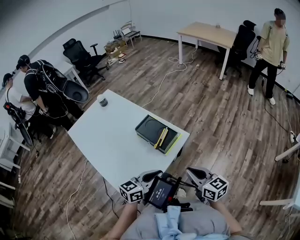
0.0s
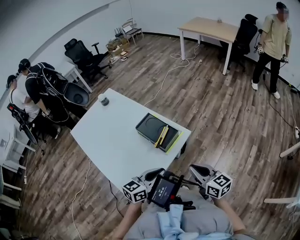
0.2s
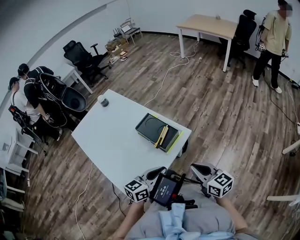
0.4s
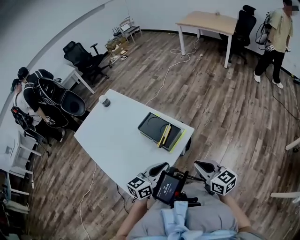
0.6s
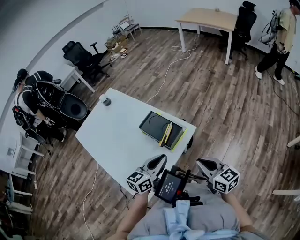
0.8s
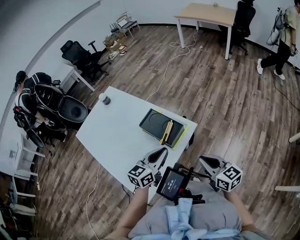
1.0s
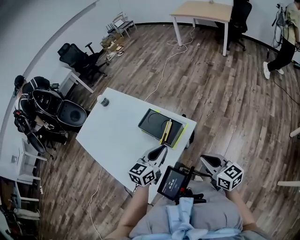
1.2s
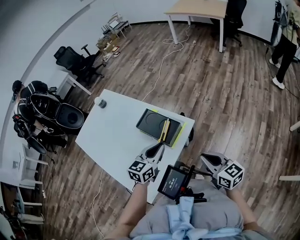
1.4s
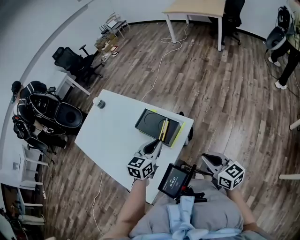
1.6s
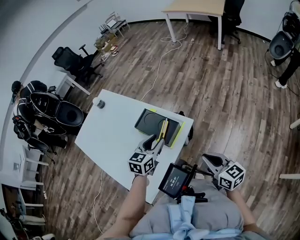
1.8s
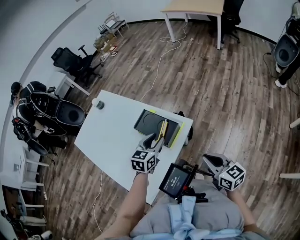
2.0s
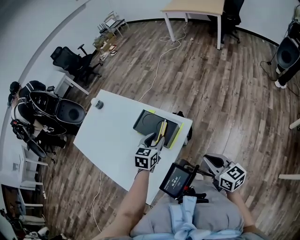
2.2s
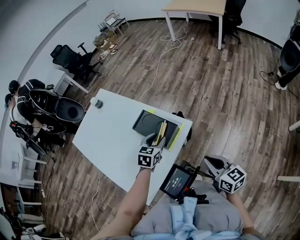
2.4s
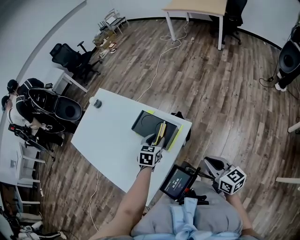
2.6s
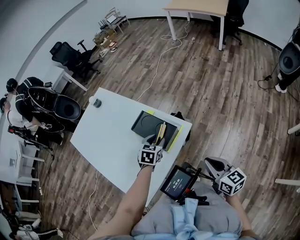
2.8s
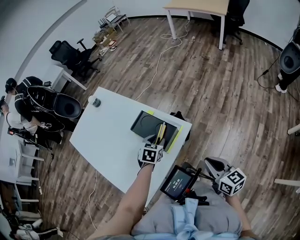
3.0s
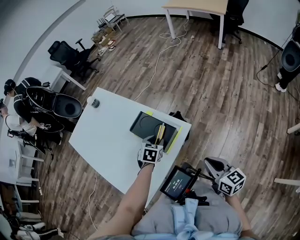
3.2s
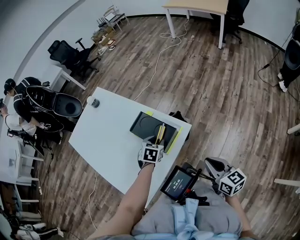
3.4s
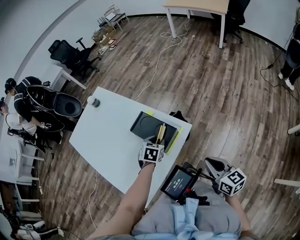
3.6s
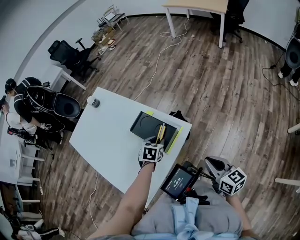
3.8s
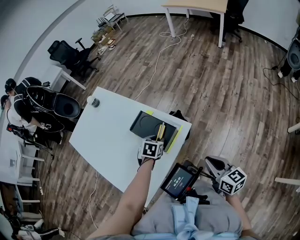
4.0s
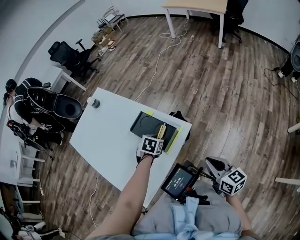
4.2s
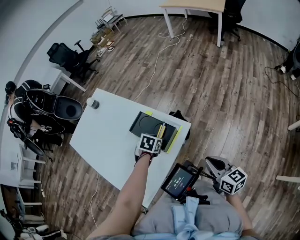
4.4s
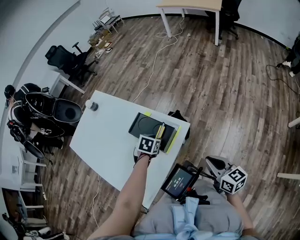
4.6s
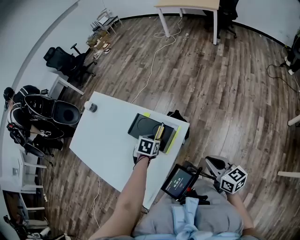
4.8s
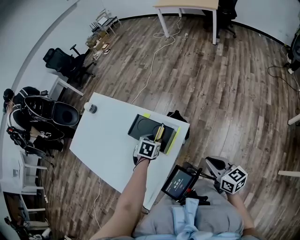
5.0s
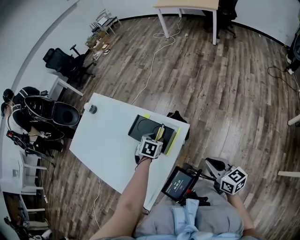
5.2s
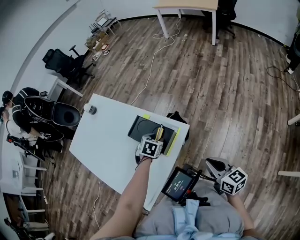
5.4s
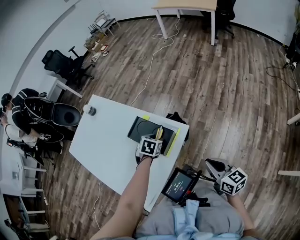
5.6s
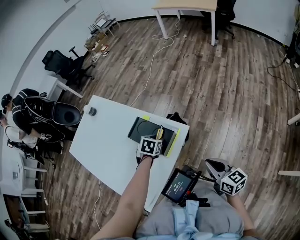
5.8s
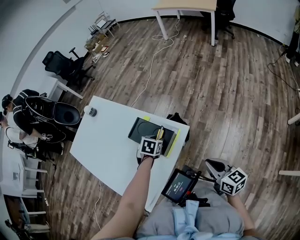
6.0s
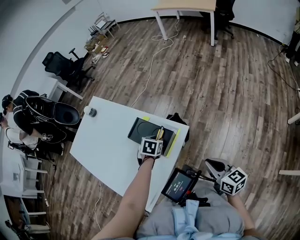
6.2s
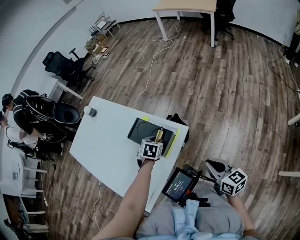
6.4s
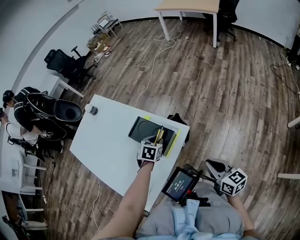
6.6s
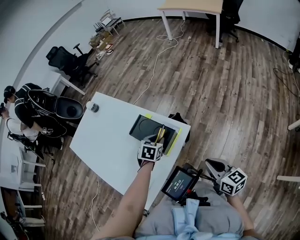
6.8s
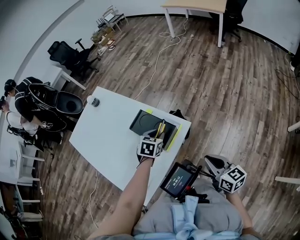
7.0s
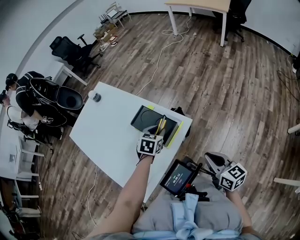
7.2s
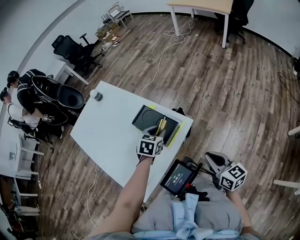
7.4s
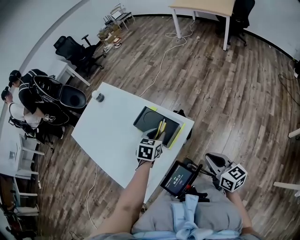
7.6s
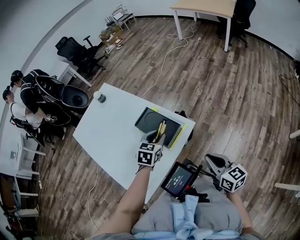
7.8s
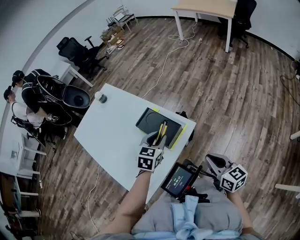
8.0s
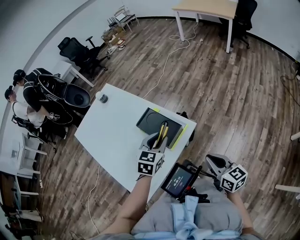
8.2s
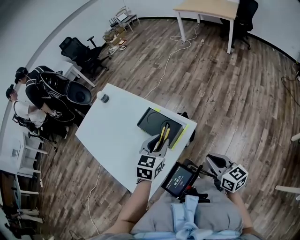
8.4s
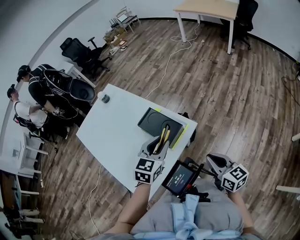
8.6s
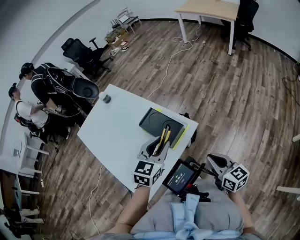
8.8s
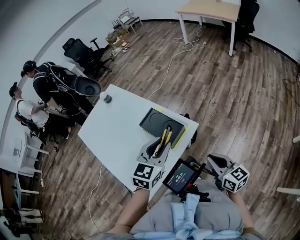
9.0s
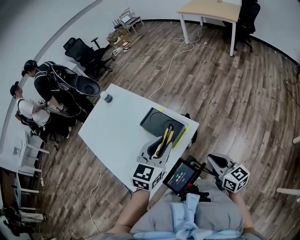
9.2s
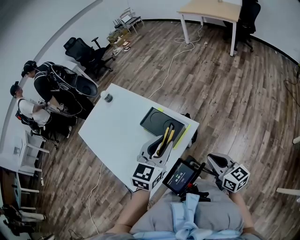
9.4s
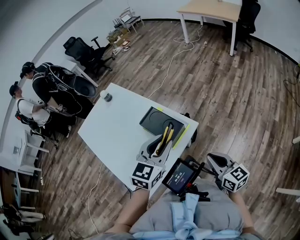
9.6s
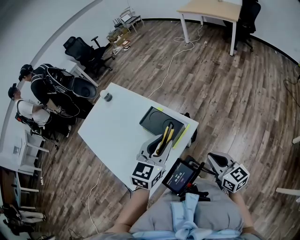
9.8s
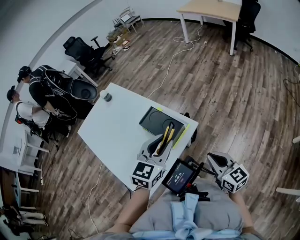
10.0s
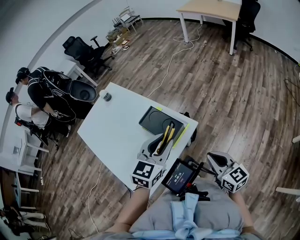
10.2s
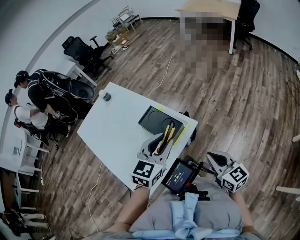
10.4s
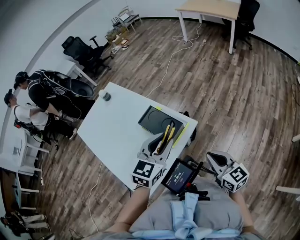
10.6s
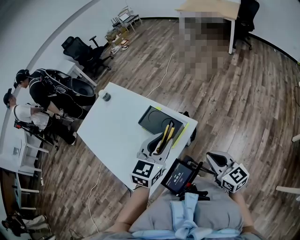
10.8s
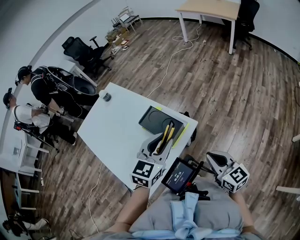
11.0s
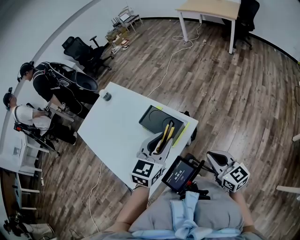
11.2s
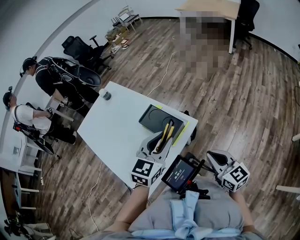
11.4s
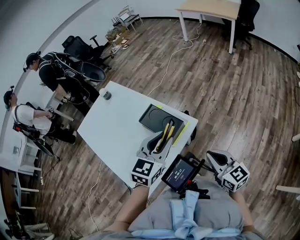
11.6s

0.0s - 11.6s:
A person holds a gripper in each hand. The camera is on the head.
0.0s - 1.4s: The right gripper changes place by roughly 5 cm; the left gripper heads forward, covering some 15 cm, and turns by roughly 20 degrees.
1.4s - 2.8s: The right gripper changes place by about 5 cm. Meanwhile the left gripper is displaced downward and forward by approximately 15 cm, swivels some 30 degrees, and opens.
2.8s - 4.4s: The left gripper rotates approximately 20 degrees.
4.4s - 5.8s: The grippers move only a little.
5.8s - 7.2s: The left gripper shifts by some 5 cm.
7.2s - 8.8s: The left gripper goes some 15 cm upward and backward, and swivels about 20 degrees.
8.8s - 11.6s: The grippers move only a little.

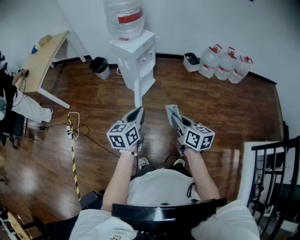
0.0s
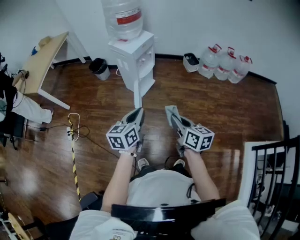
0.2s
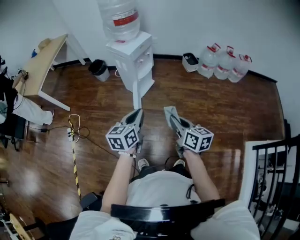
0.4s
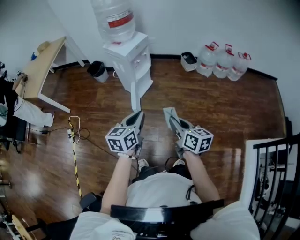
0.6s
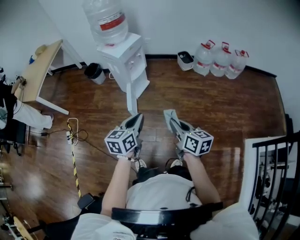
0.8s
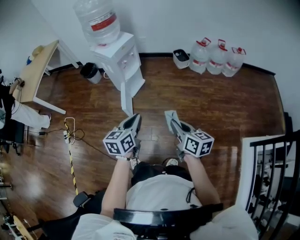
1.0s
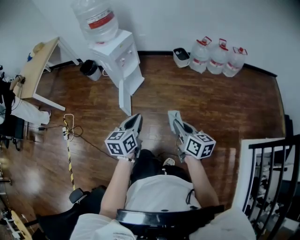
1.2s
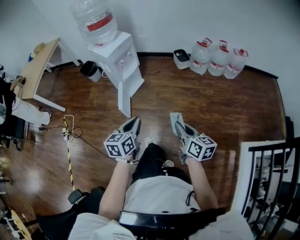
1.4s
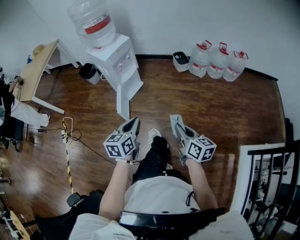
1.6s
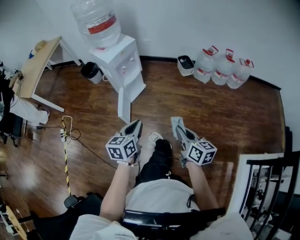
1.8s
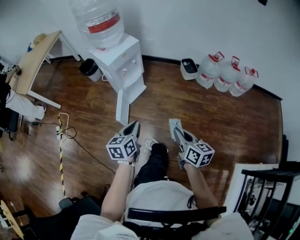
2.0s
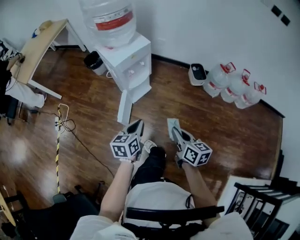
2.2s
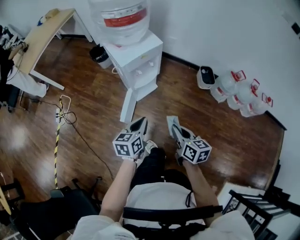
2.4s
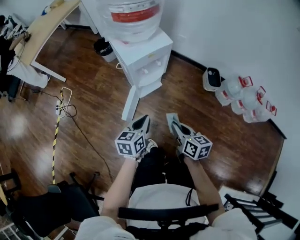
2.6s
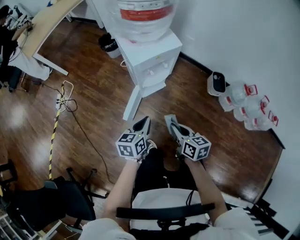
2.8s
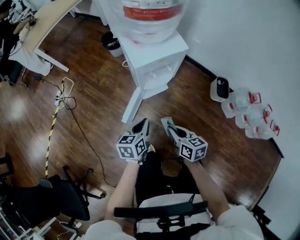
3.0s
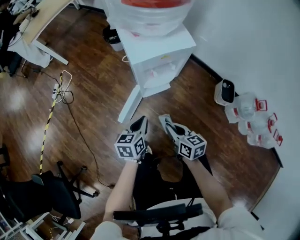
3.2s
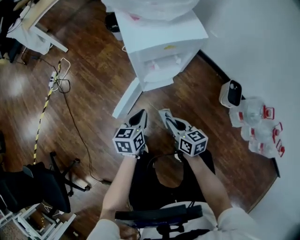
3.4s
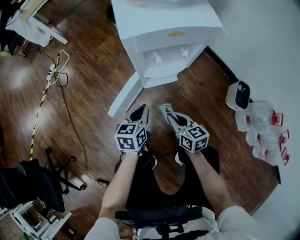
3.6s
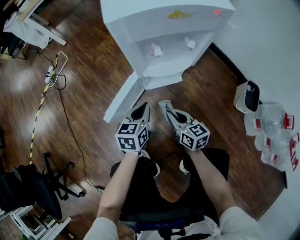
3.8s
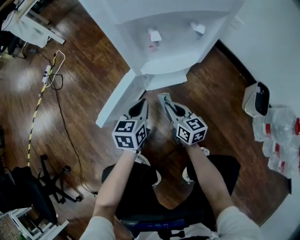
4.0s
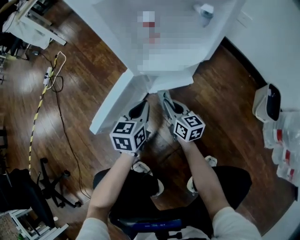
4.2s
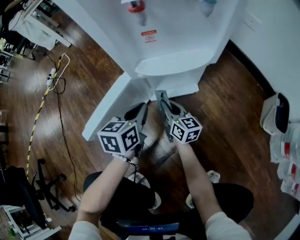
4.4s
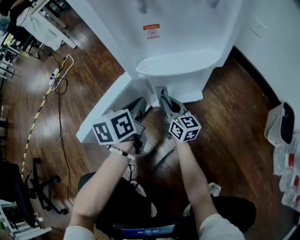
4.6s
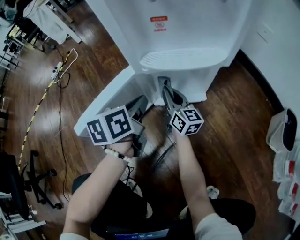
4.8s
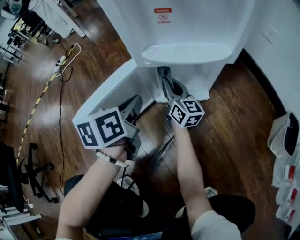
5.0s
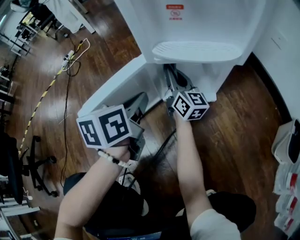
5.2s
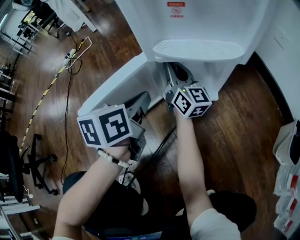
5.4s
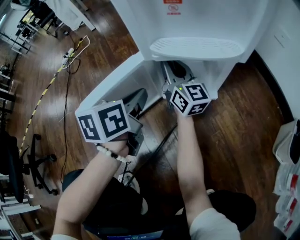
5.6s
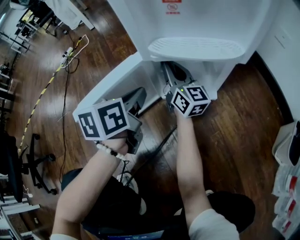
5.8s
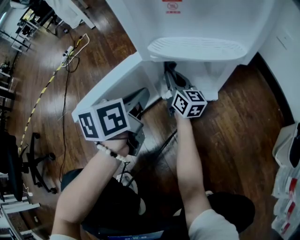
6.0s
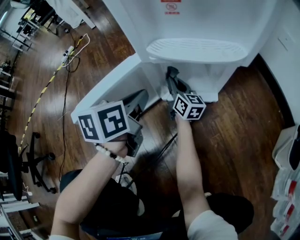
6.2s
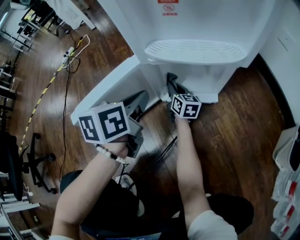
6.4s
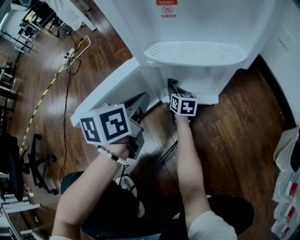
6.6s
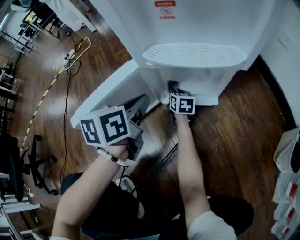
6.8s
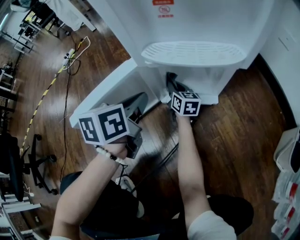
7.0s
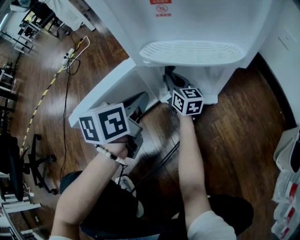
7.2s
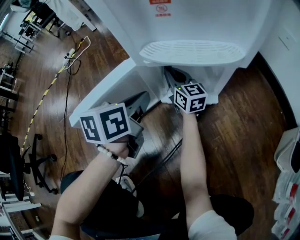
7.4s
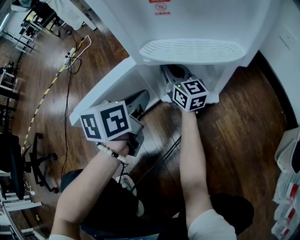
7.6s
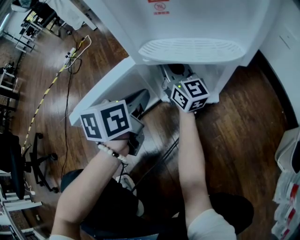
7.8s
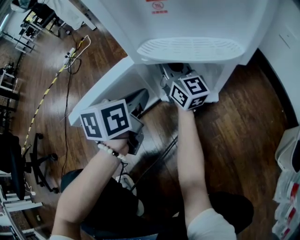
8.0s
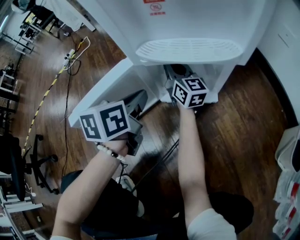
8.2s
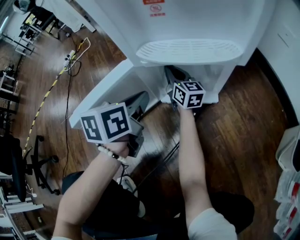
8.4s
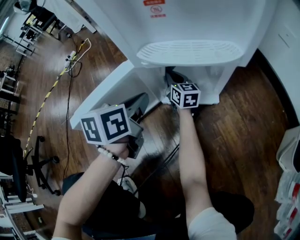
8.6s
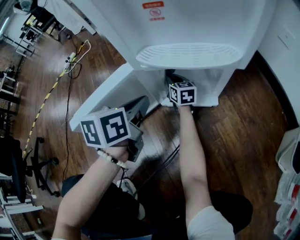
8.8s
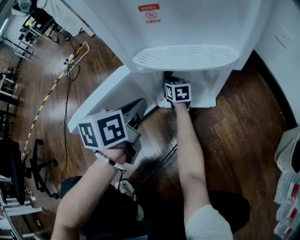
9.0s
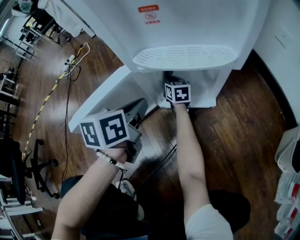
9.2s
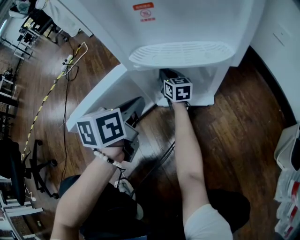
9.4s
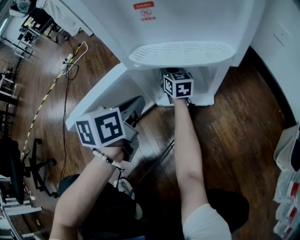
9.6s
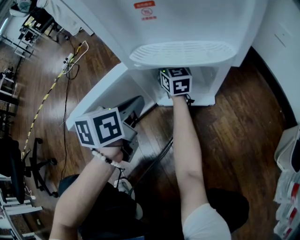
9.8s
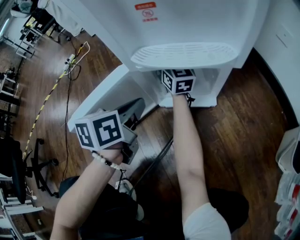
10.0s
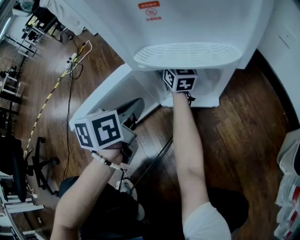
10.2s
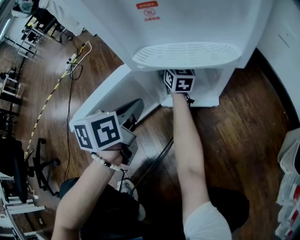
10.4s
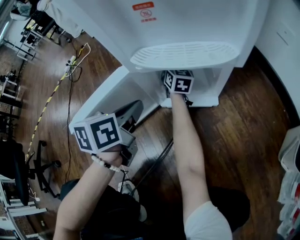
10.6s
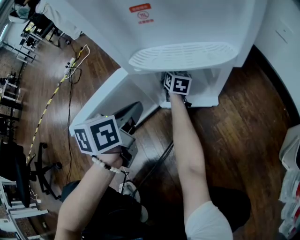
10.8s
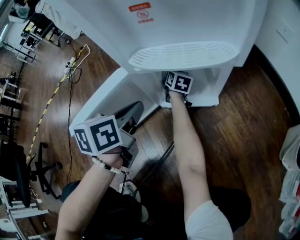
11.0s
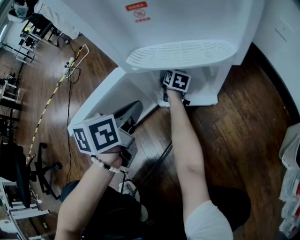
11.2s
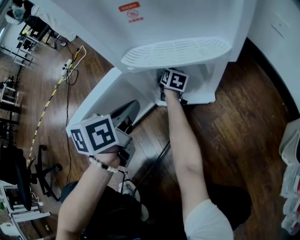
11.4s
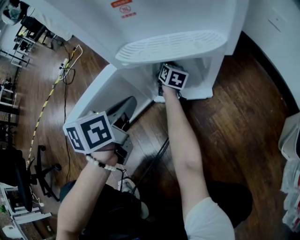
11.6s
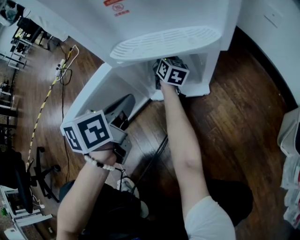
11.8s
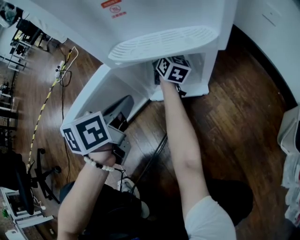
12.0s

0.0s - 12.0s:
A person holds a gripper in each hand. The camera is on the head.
0.0s - 1.6s: The grippers both shift to the right by approximately 20 cm.
1.6s - 3.0s: The right gripper shifts by about 40 cm, and changes its angle by roughly 40 degrees. The left gripper shifts by approximately 35 cm, and changes its angle by some 30 degrees.
3.0s - 4.4s: The left gripper is displaced downward by approximately 40 cm. Meanwhile the right gripper travels downward and forward by approximately 60 cm, and swivels approximately 20 degrees.
4.4s - 6.0s: The left gripper rotates about 20 degrees. The right gripper travels forward by approximately 10 cm.
6.0s - 7.6s: The right gripper moves approximately 15 cm downward and comes back.
7.6s - 9.0s: The right gripper travels downward by about 15 cm, and points its fingers approximately 30 degrees further downward.
9.0s - 10.4s: The right gripper travels upward by roughly 15 cm, and swivels some 30 degrees.
10.4s - 12.0s: The right gripper moves to the right, about 5 cm, goes downward and returns, roughly 15 cm each way, and rotates some 20 degrees.
